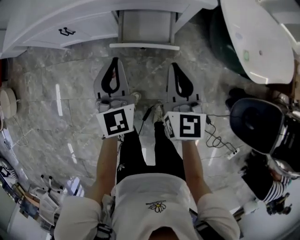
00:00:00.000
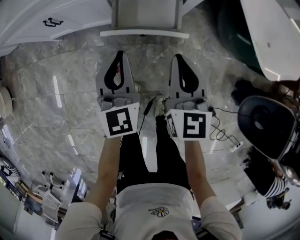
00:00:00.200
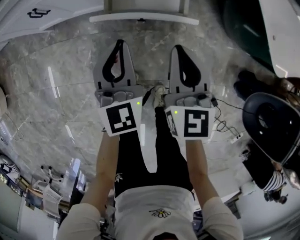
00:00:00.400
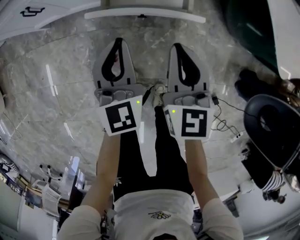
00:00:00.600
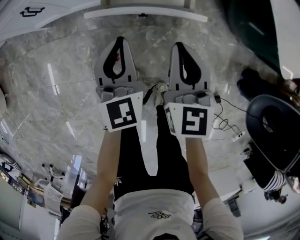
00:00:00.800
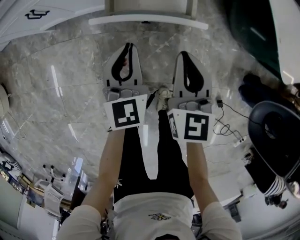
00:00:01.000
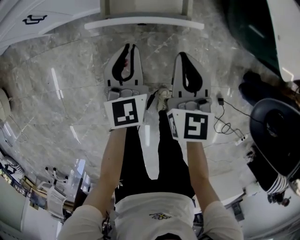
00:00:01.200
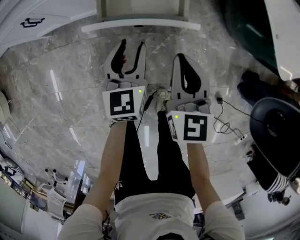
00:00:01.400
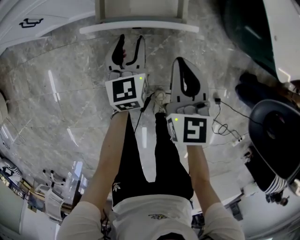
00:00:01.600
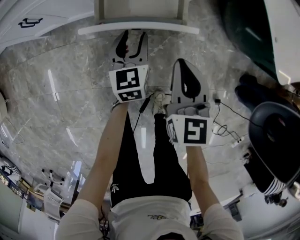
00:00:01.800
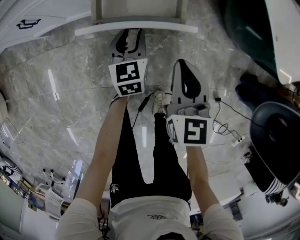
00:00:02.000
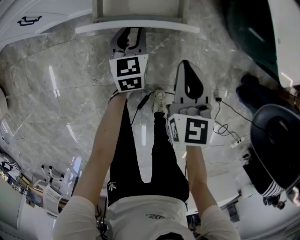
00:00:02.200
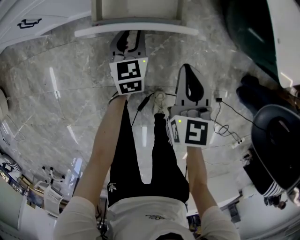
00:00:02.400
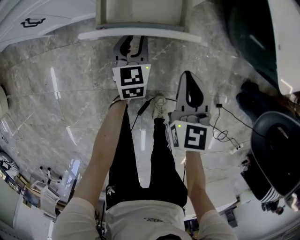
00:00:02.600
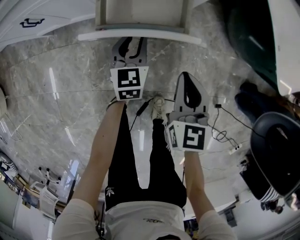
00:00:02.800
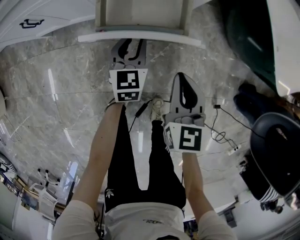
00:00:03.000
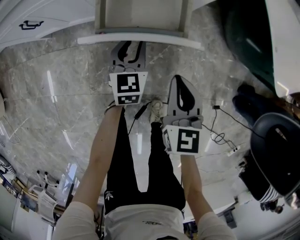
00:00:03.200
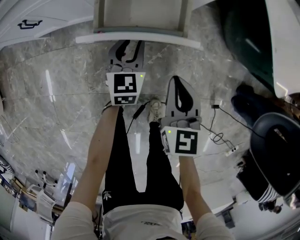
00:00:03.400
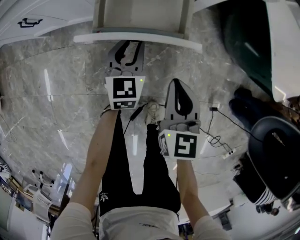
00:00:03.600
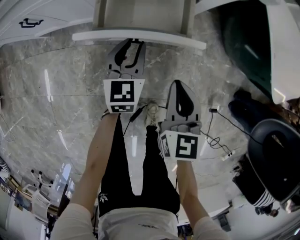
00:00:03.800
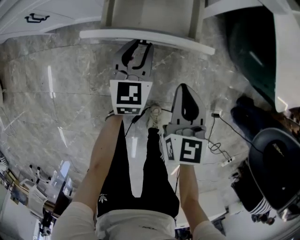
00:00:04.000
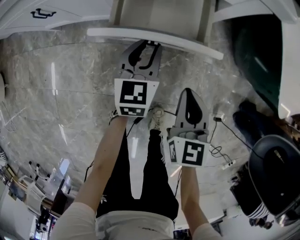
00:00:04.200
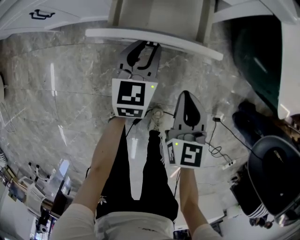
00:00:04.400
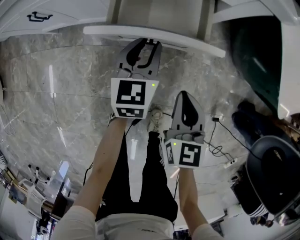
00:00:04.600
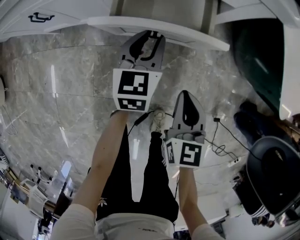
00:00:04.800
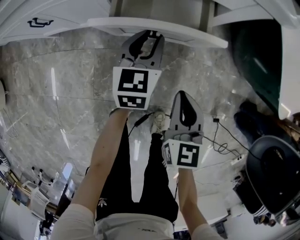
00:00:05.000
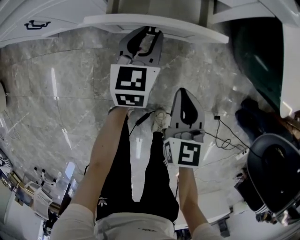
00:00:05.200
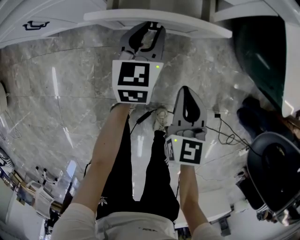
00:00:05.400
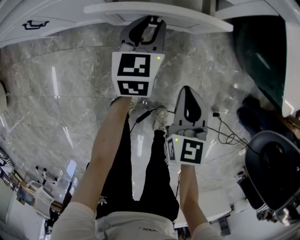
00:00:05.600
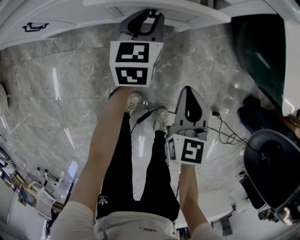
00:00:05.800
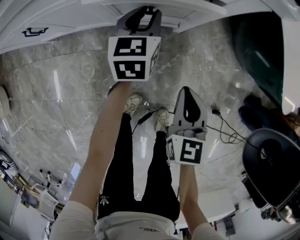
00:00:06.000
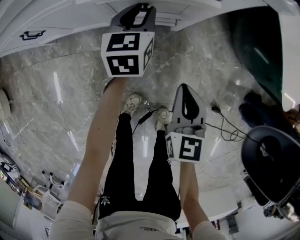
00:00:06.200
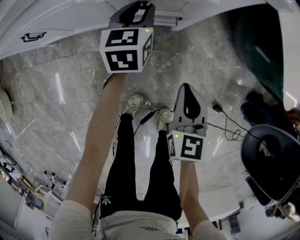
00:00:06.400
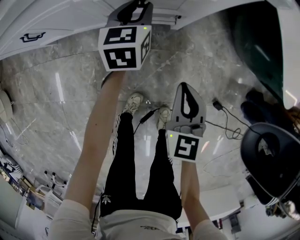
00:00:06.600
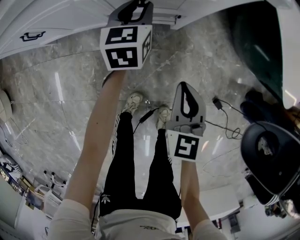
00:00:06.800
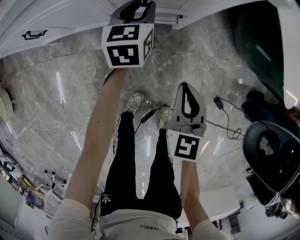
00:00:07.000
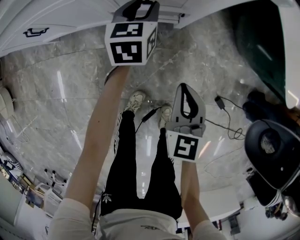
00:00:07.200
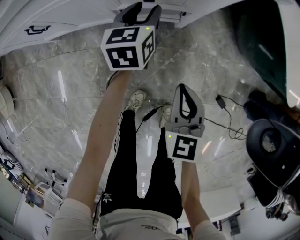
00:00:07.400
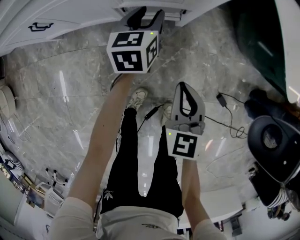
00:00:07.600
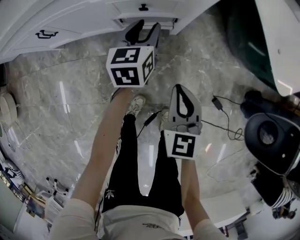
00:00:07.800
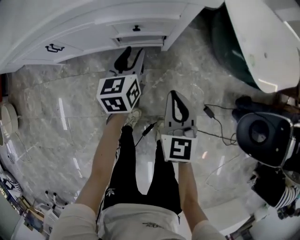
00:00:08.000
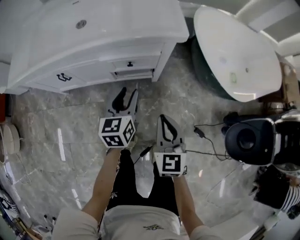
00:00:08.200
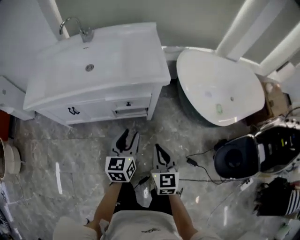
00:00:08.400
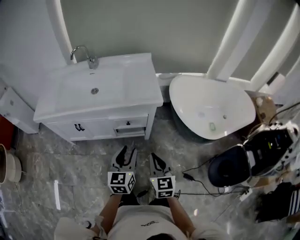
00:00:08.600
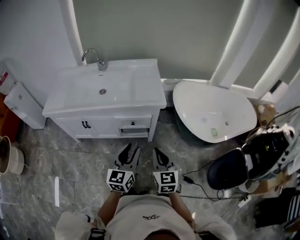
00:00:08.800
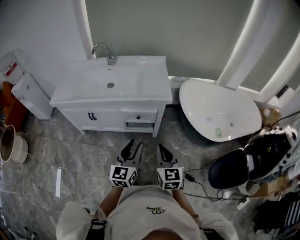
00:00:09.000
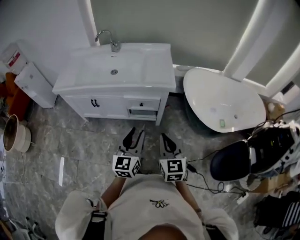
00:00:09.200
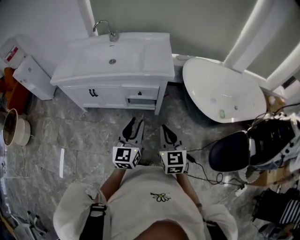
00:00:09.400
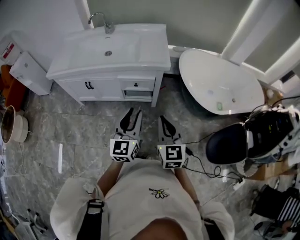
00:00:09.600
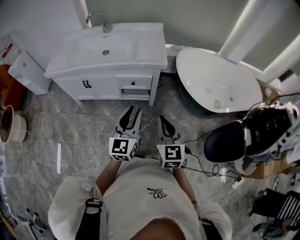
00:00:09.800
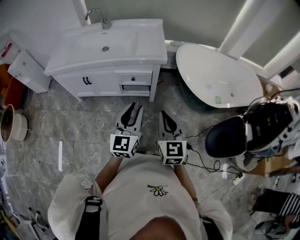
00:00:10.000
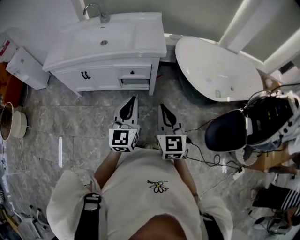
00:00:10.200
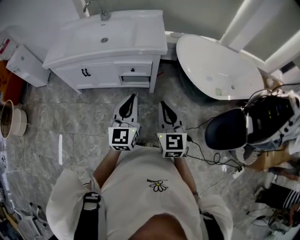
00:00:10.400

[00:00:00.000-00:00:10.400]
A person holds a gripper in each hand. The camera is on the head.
00:00:00.000 to 00:00:01.400: Both grippers travel together downward, about 20 cm. The left gripper swivels about 20 degrees, and opens its fingers.
00:00:01.400 to 00:00:03.000: The right gripper moves approximately 5 cm. Meanwhile the left gripper heads downward and forward, covering about 10 cm.
00:00:03.000 to 00:00:04.400: The grippers make only small movements.
00:00:04.400 to 00:00:06.000: The left gripper goes roughly 10 cm forward.
00:00:06.000 to 00:00:07.400: The grippers stay close to where they were, moving slightly.
00:00:07.400 to 00:00:09.000: The right gripper goes approximately 35 cm upward, while the left gripper heads upward and backward, covering about 50 cm, and rotates approximately 30 degrees.
00:00:09.000 to 00:00:10.400: The left gripper heads to the right, covering approximately 5 cm, and closes its fingers. The right gripper moves backward and to the right, about 10 cm.

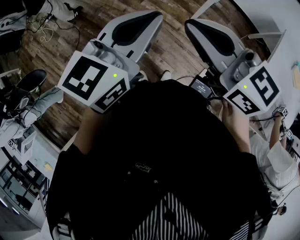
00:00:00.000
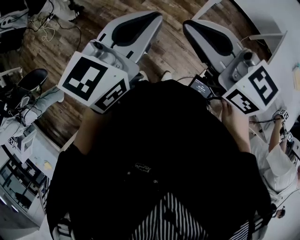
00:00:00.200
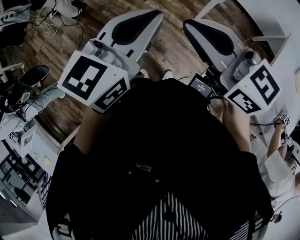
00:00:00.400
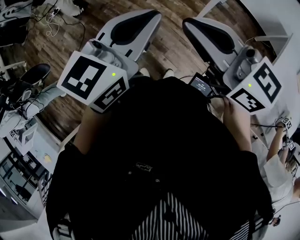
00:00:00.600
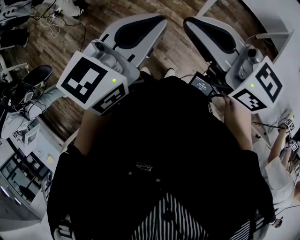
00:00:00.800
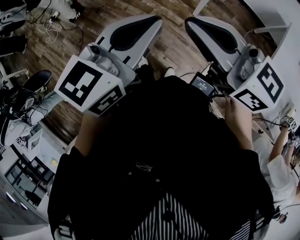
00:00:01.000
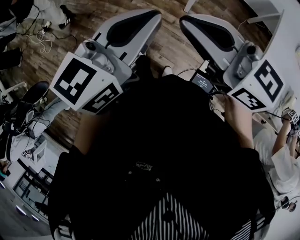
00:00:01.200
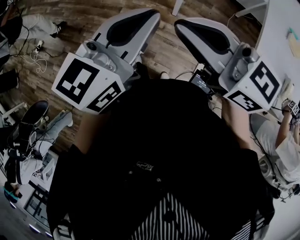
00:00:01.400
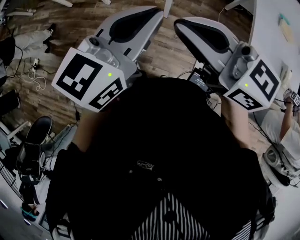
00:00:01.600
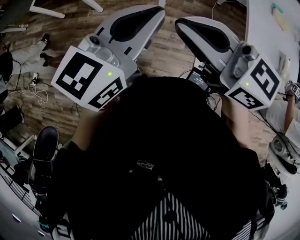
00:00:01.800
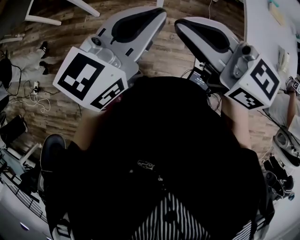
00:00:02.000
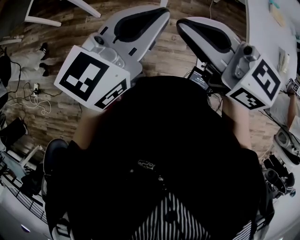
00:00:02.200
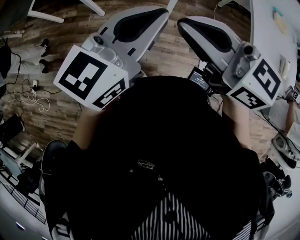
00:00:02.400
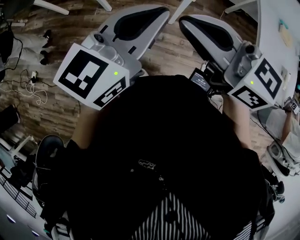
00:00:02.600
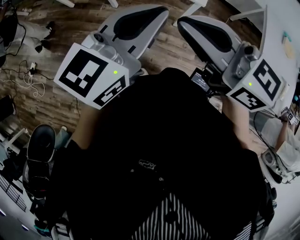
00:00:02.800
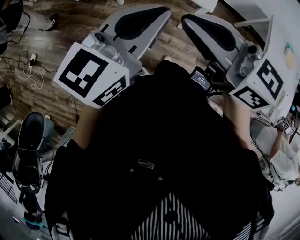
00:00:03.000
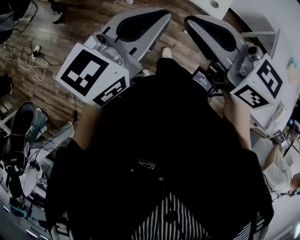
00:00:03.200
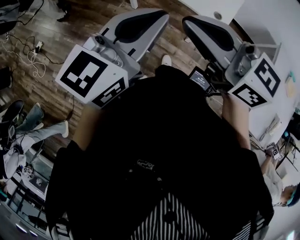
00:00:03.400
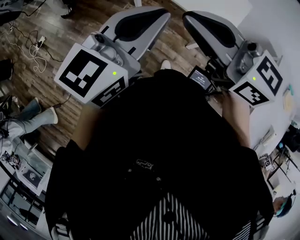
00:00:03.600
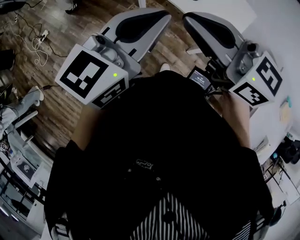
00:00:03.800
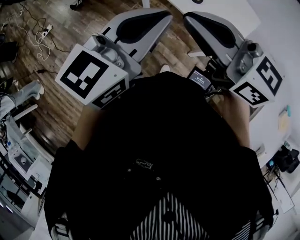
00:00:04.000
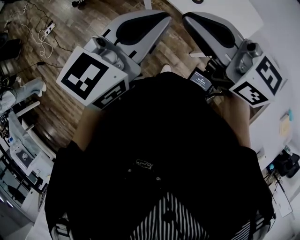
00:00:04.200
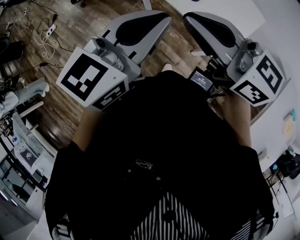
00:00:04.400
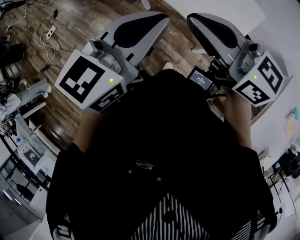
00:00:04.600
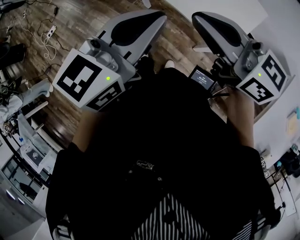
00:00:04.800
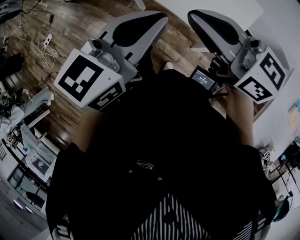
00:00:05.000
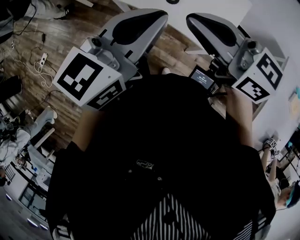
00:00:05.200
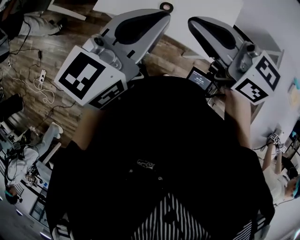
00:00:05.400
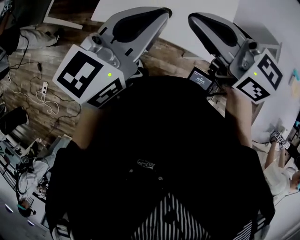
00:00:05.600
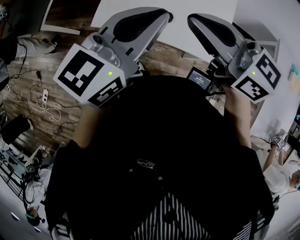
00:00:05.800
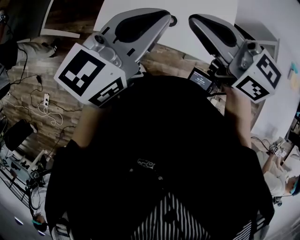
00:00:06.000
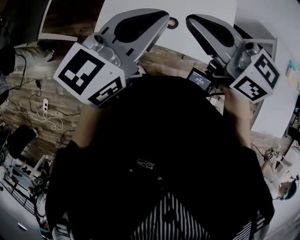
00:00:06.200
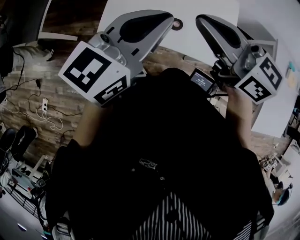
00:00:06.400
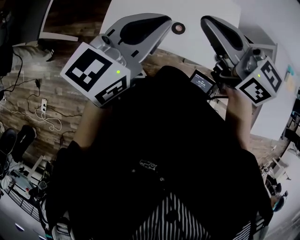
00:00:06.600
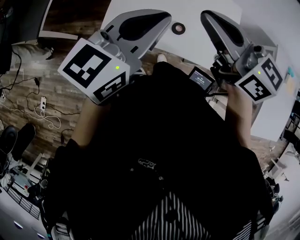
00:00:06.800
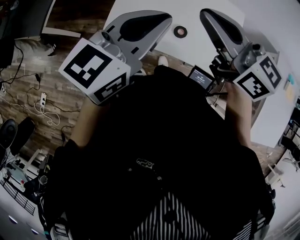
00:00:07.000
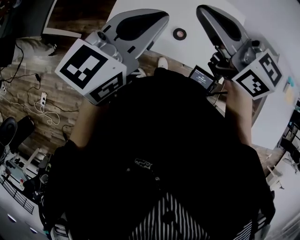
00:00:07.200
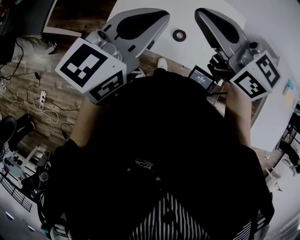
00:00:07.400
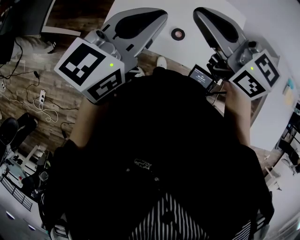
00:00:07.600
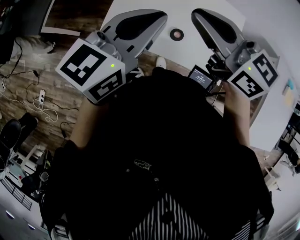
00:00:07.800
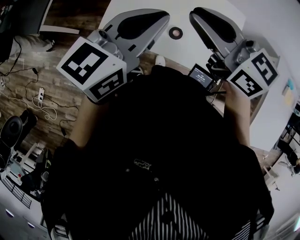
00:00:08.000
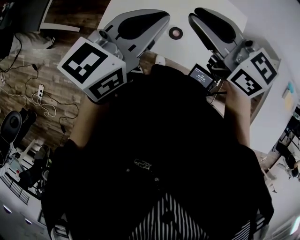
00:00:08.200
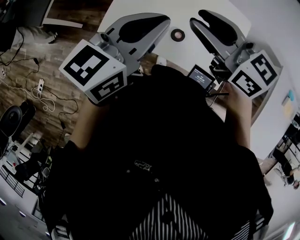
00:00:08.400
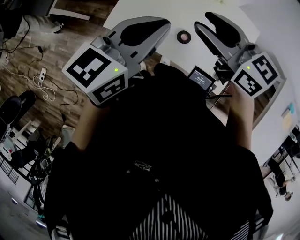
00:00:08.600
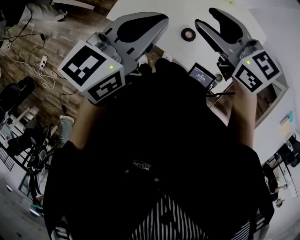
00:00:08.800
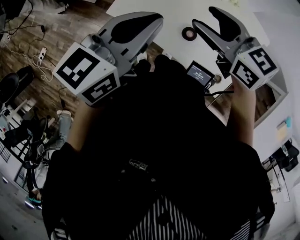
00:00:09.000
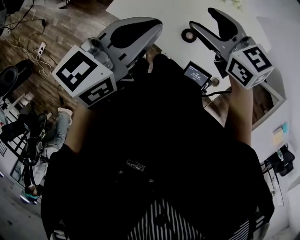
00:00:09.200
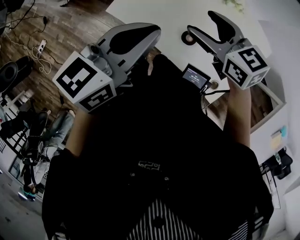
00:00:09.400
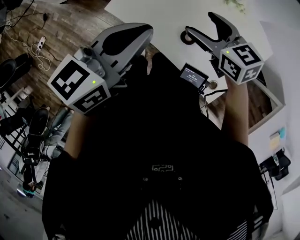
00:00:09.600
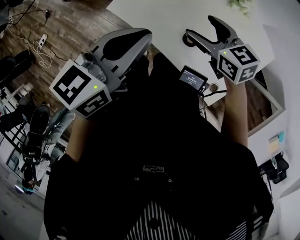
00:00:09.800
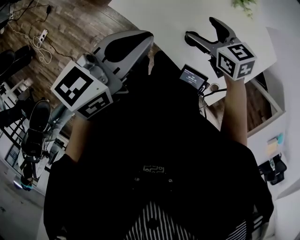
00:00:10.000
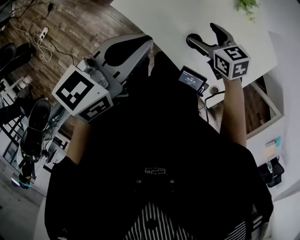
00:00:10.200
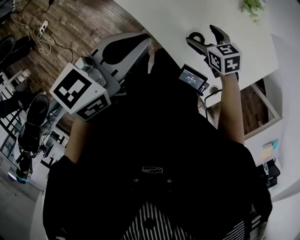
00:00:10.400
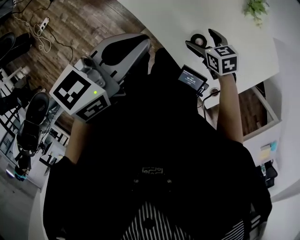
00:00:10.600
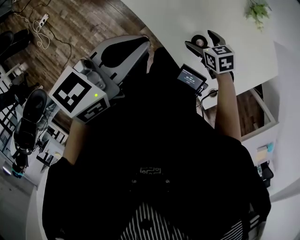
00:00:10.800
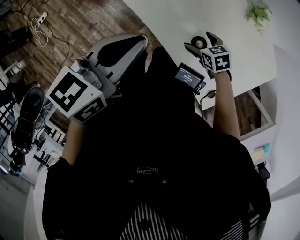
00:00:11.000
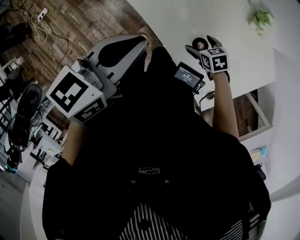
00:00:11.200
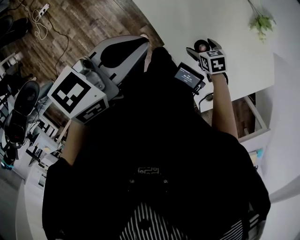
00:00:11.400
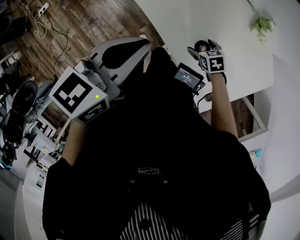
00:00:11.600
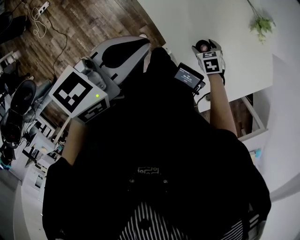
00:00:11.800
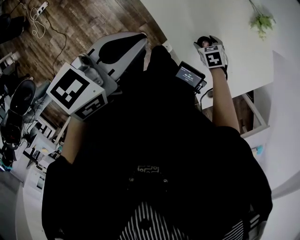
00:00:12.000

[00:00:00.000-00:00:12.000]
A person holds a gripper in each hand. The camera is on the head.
00:00:00.000 to 00:00:01.600: Both grippers move to the right and forward, roughly 15 cm. The left gripper changes its angle by approximately 20 degrees.
00:00:01.600 to 00:00:03.000: The grippers both shift to the left and forward by about 25 cm.
00:00:03.000 to 00:00:04.400: Both grippers move forward, roughly 15 cm. The left gripper changes its angle by roughly 20 degrees, while the right gripper changes its angle by some 20 degrees.
00:00:04.400 to 00:00:06.000: The left gripper moves approximately 25 cm, and rotates roughly 30 degrees, while the right gripper changes place by roughly 25 cm, and swivels about 30 degrees.
00:00:06.000 to 00:00:07.600: The grippers both shift forward by roughly 10 cm.
00:00:07.600 to 00:00:09.000: The right gripper is displaced downward and to the right by approximately 10 cm, swivels about 20 degrees, and opens its fingers.
00:00:09.000 to 00:00:10.400: The right gripper shifts some 25 cm downward, turns by roughly 30 degrees, and opens its fingers. Meanwhile the left gripper ends up about 5 cm from where it was.
00:00:10.400 to 00:00:12.000: The left gripper moves some 5 cm; the right gripper shifts approximately 15 cm downward, and rotates roughly 30 degrees.

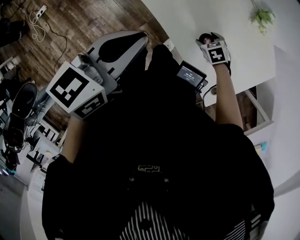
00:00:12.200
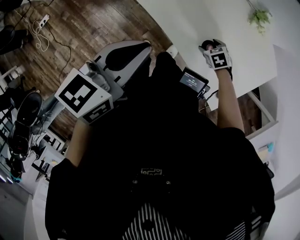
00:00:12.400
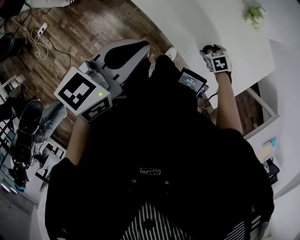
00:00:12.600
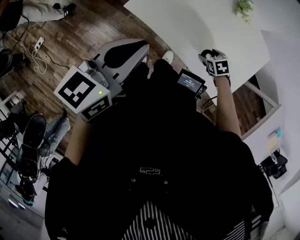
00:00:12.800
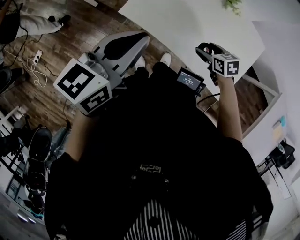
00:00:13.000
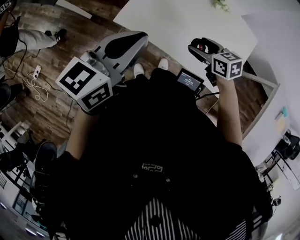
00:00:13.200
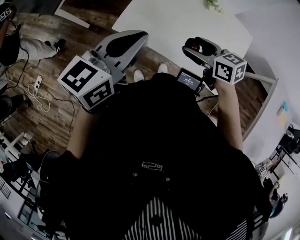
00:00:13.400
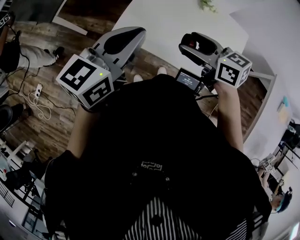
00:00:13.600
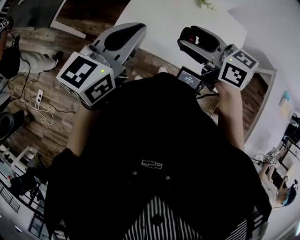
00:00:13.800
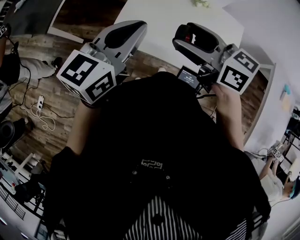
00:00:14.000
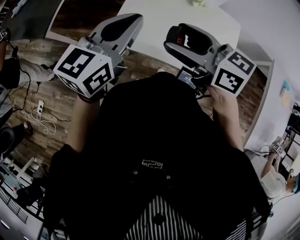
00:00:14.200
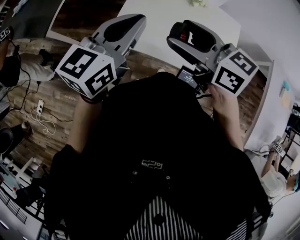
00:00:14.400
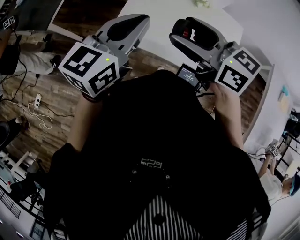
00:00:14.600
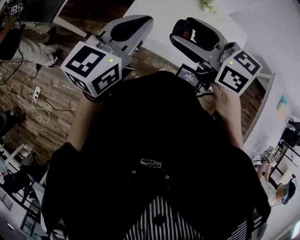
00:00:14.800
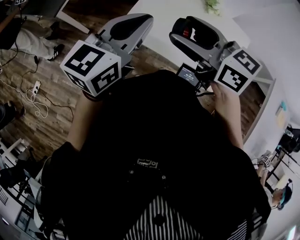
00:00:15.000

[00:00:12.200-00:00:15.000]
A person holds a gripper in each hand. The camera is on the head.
00:00:12.200 to 00:00:13.600: The right gripper is displaced upward by some 35 cm, and tilts its fingers some 50 degrees upward; the left gripper shifts some 5 cm upward, and turns by roughly 30 degrees.
00:00:13.600 to 00:00:15.000: The right gripper shifts about 10 cm upward and to the left.
